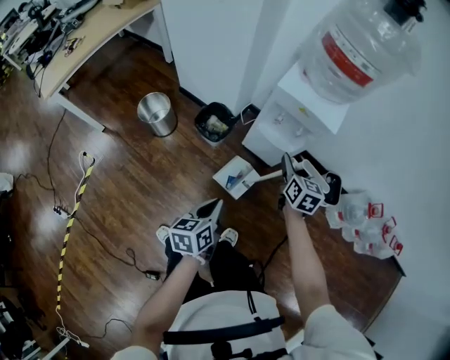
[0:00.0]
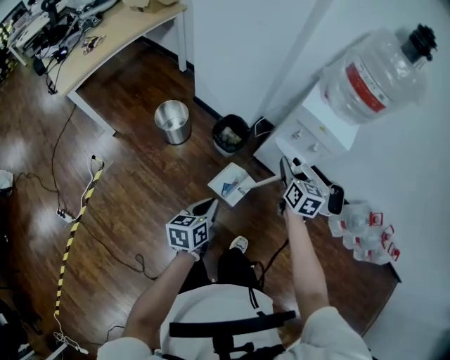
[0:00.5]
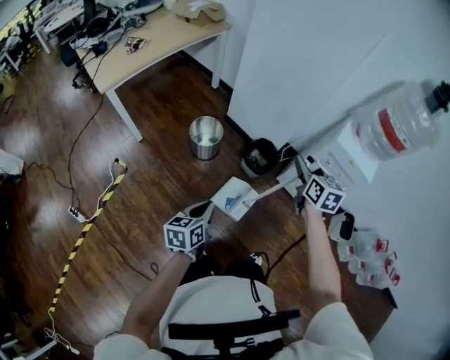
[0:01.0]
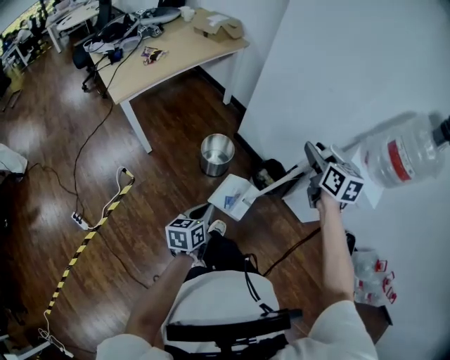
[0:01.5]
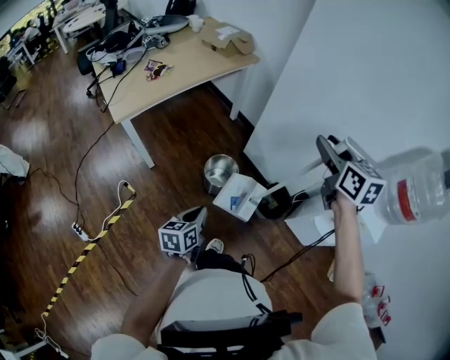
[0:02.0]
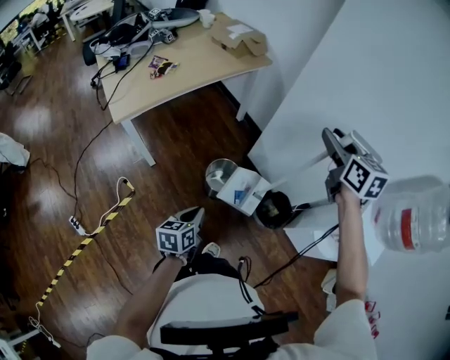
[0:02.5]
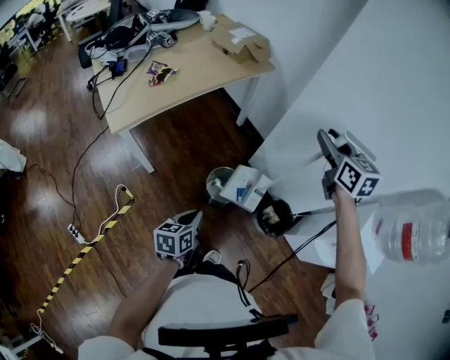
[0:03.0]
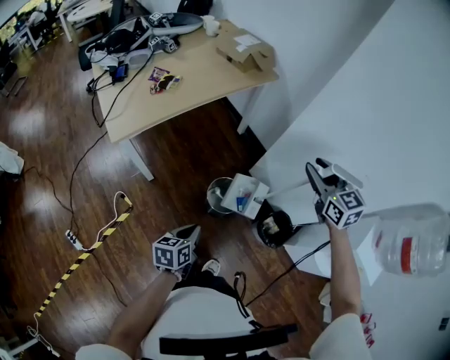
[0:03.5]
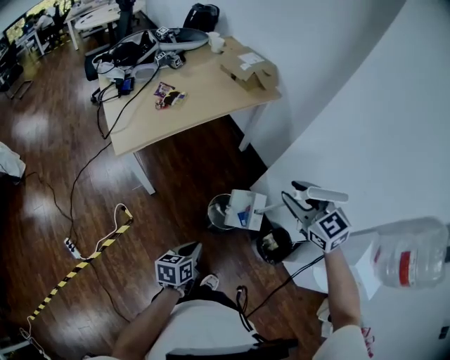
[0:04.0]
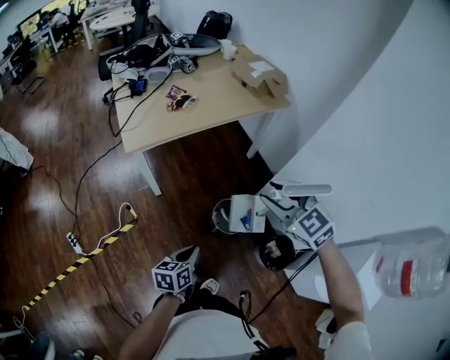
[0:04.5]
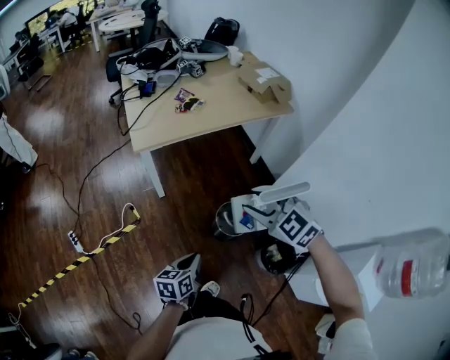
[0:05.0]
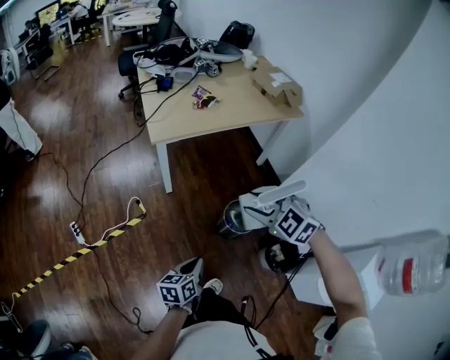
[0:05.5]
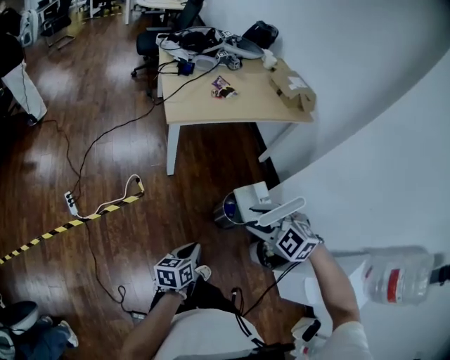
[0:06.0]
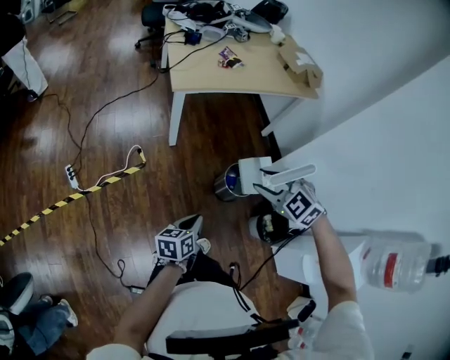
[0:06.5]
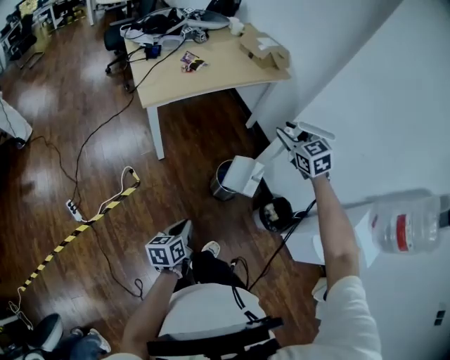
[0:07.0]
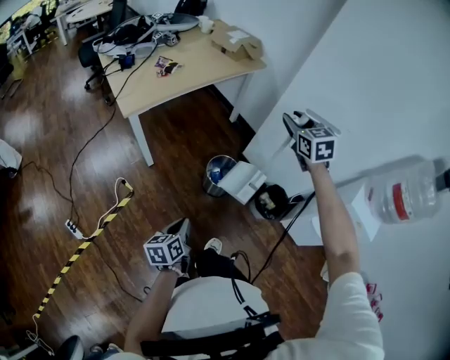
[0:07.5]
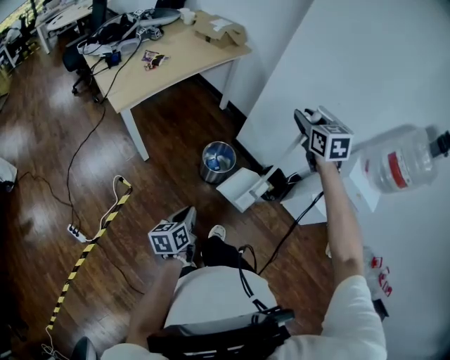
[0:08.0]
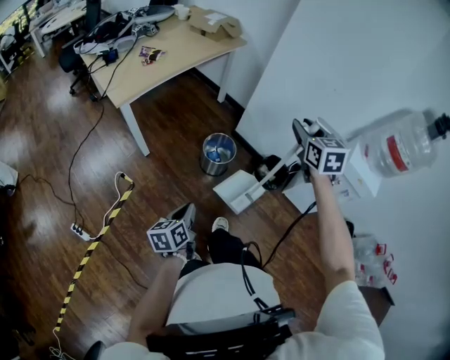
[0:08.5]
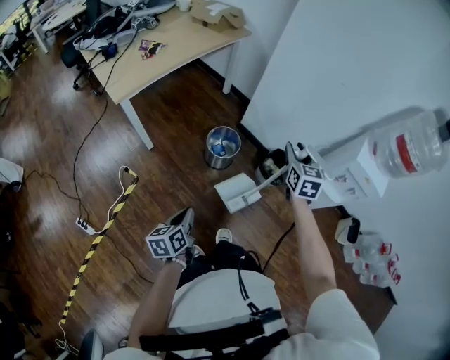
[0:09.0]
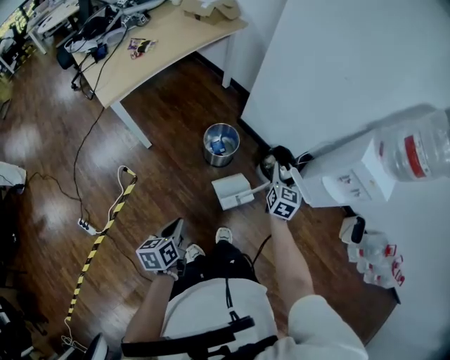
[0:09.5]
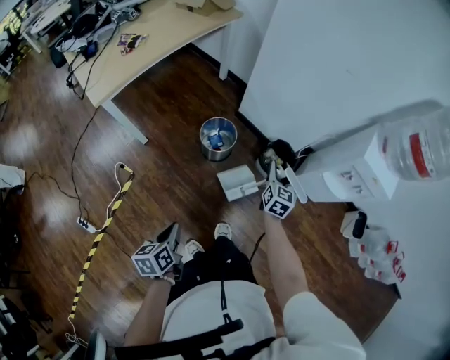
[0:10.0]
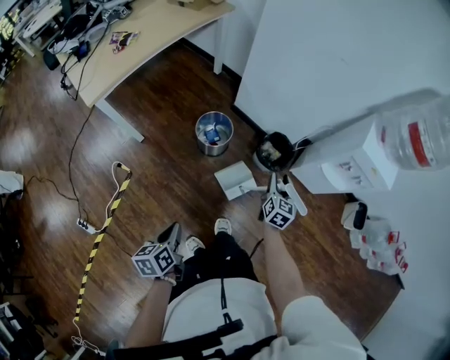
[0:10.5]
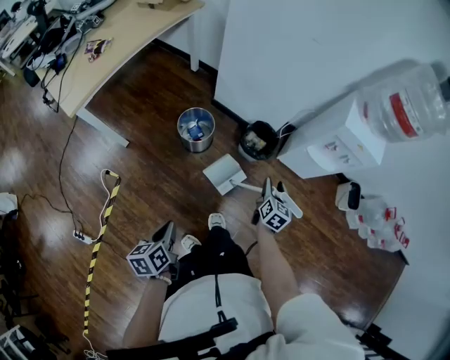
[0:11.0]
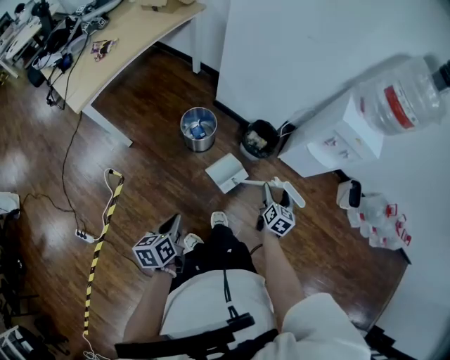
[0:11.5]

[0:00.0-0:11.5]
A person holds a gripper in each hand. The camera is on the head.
0:00.0 to 0:02.0: The two grippers travel together, to the left, some 50 cm. The right gripper moves upward, some 30 cm, and changes its angle by some 30 degrees.
0:02.0 to 0:04.0: The left gripper is displaced forward and to the left by some 10 cm. The right gripper moves to the left, forward and downward, roughly 20 cm, and swivels some 40 degrees.
0:04.0 to 0:06.0: The right gripper is displaced to the left and backward by roughly 30 cm, and rotates approximately 50 degrees. The left gripper heads backward and to the left, covering approximately 15 cm, and rotates some 20 degrees.
0:06.0 to 0:07.5: The right gripper ends up about 30 cm from where it was, and swivels about 70 degrees.
0:07.5 to 0:09.5: The left gripper is displaced backward by about 5 cm. Meanwhile the right gripper shifts about 35 cm downward, backward and to the right, and turns by some 40 degrees.
0:09.5 to 0:11.5: The left gripper moves to the right, roughly 5 cm, while the right gripper moves to the right, backward and downward, about 25 cm, changes its angle by approximately 30 degrees, and opens up.

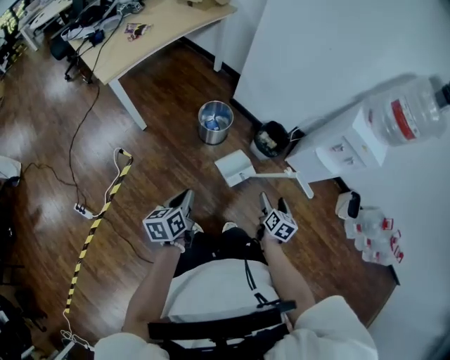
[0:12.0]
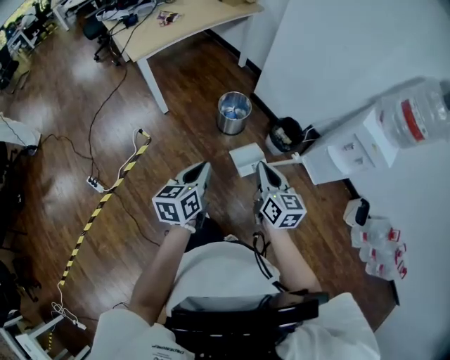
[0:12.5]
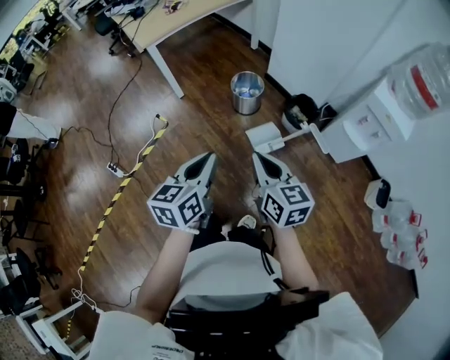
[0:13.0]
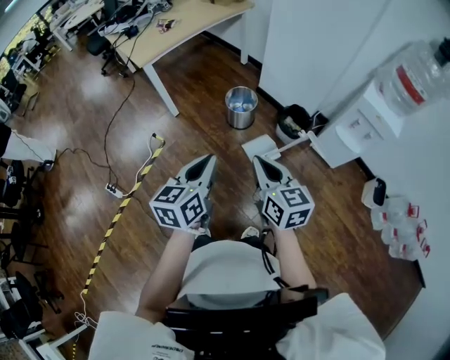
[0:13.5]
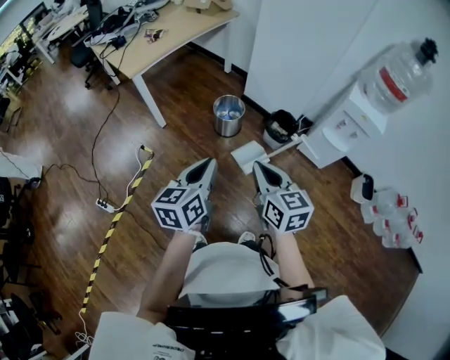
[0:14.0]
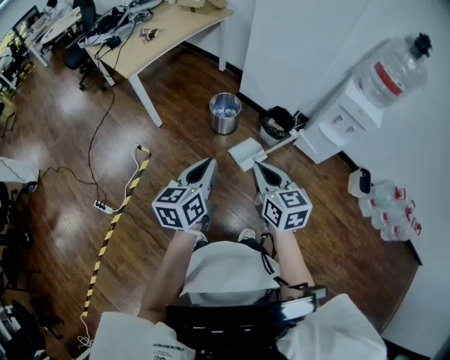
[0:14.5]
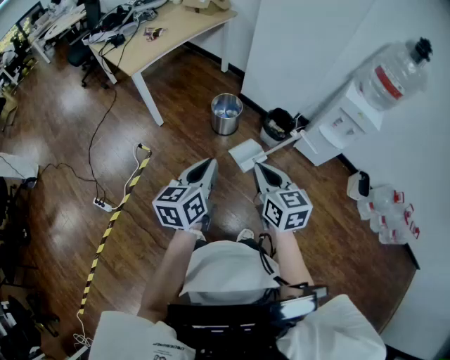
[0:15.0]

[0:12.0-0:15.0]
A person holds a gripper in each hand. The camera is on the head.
0:12.0 to 0:13.5: The left gripper is displaced upward and backward by approximately 20 cm, and swivels roughly 20 degrees. Meanwhile the right gripper shifts about 30 cm upward and to the left, changes its angle by approximately 40 degrees, and closes up.
0:13.5 to 0:15.0: There are only small adjustments of the grippers.

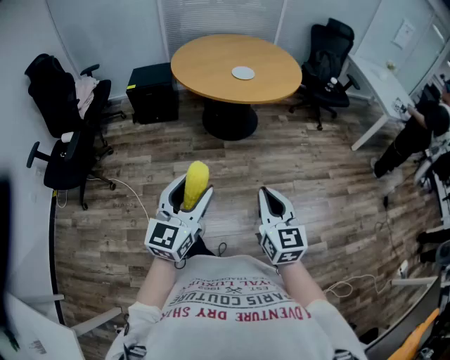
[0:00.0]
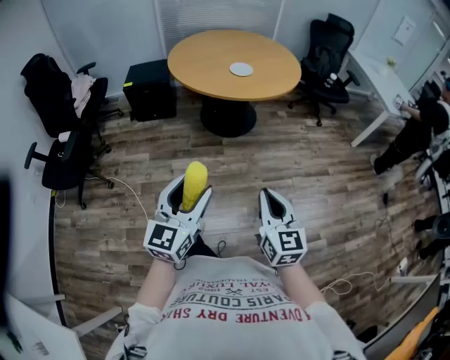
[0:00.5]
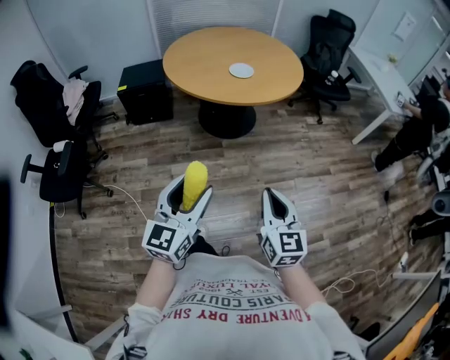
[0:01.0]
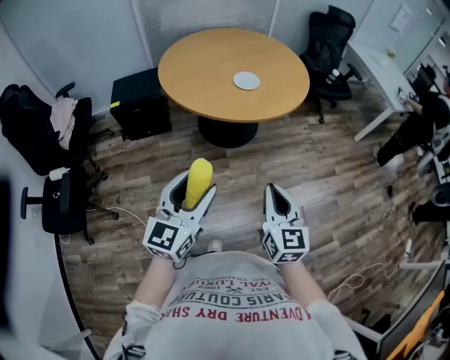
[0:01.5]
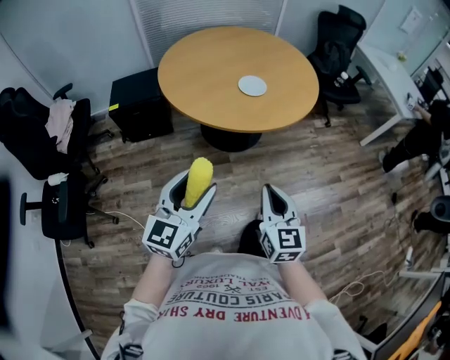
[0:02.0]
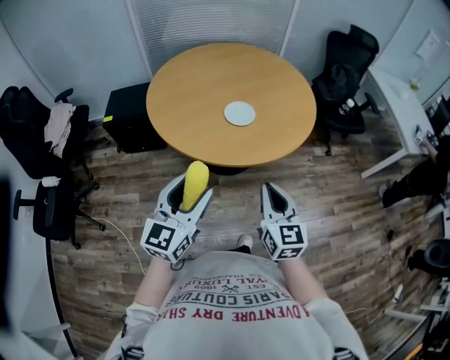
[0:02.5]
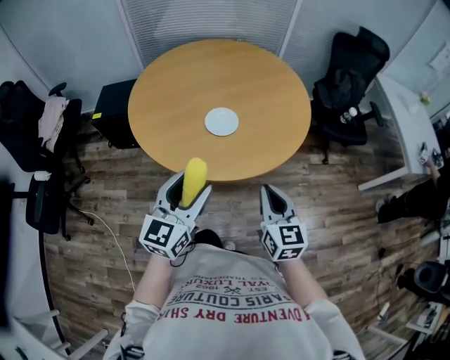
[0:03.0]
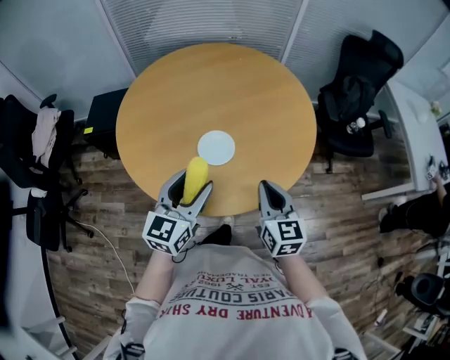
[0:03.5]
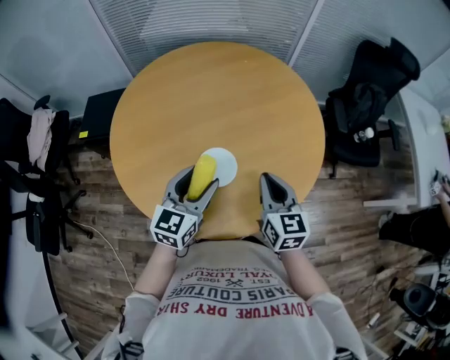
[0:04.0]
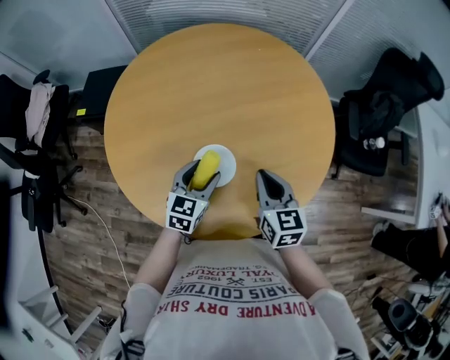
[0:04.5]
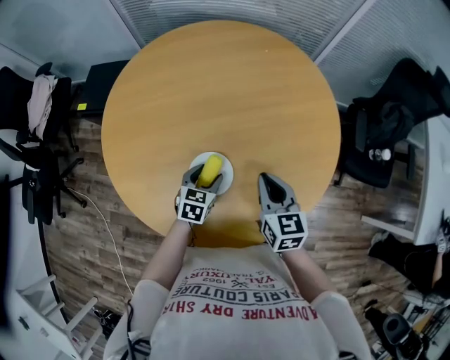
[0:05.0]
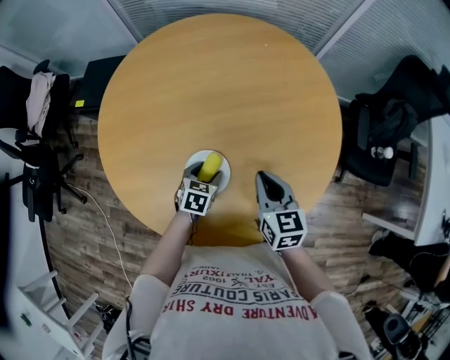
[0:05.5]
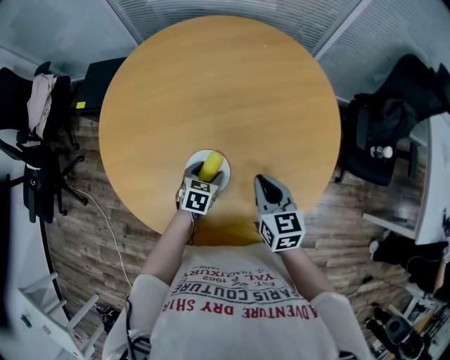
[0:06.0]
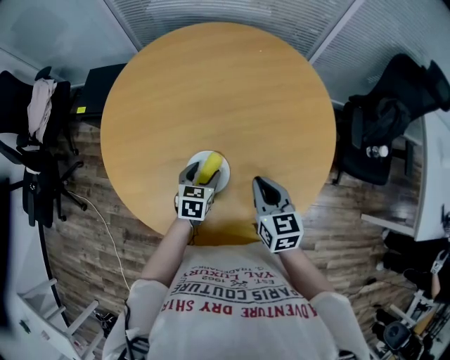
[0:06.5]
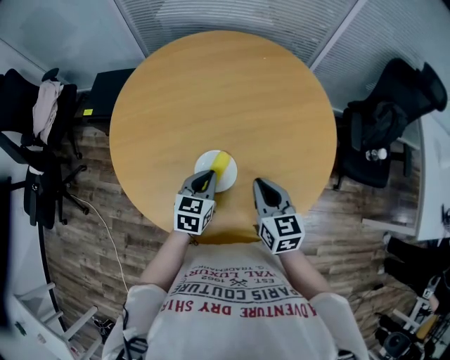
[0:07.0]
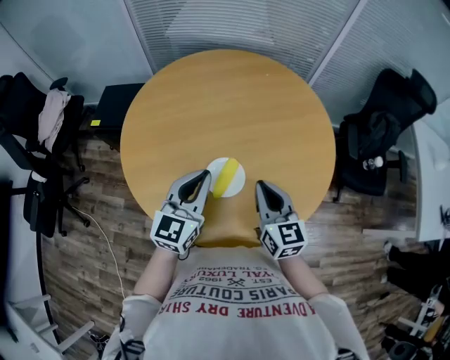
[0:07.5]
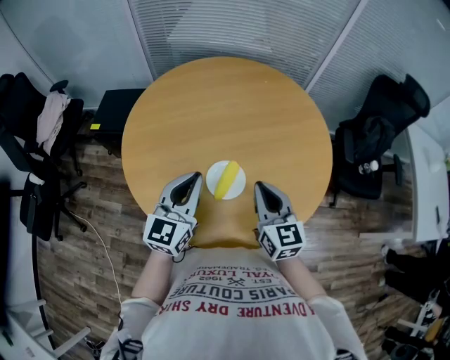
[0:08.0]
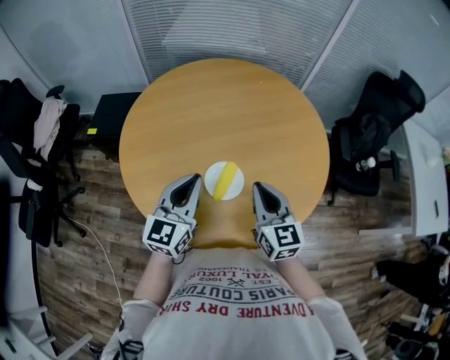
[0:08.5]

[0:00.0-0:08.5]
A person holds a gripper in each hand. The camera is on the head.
0:00.0 to 0:02.0: Both grippers move forward and to the left, roughly 30 cm.
0:02.0 to 0:04.0: Both grippers are carried forward, about 60 cm.
0:04.0 to 0:06.5: The left gripper moves downward, approximately 20 cm, and tilts its fingers about 30 degrees downward, while the right gripper moves downward and forward, about 10 cm.
0:06.5 to 0:08.5: The left gripper is displaced upward by about 25 cm, angles its fingers upward, by approximately 40 degrees, and closes. The right gripper moves upward and to the left, roughly 10 cm.

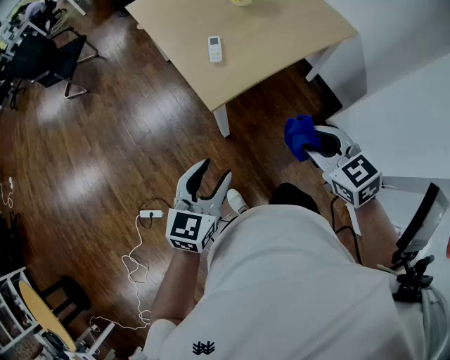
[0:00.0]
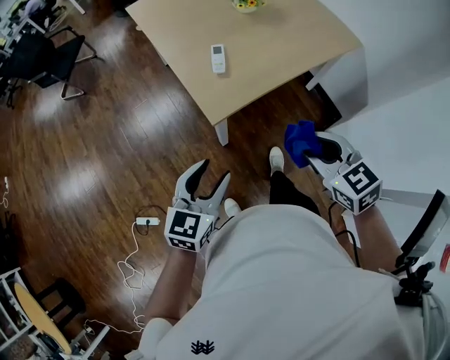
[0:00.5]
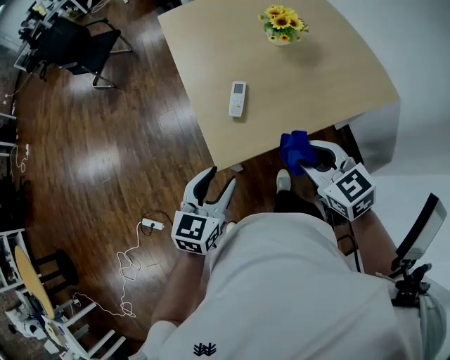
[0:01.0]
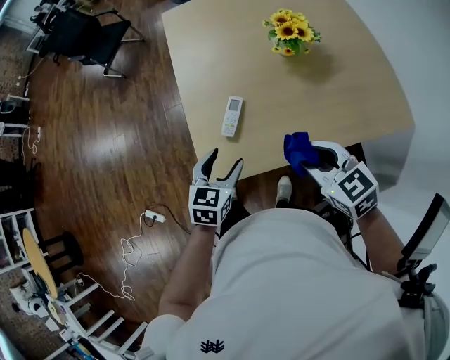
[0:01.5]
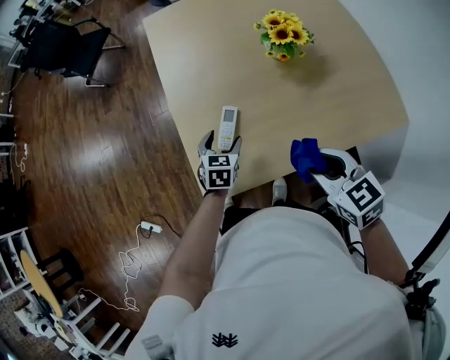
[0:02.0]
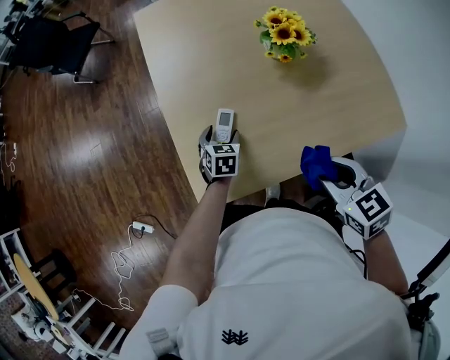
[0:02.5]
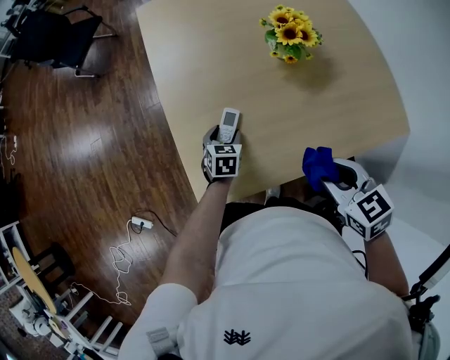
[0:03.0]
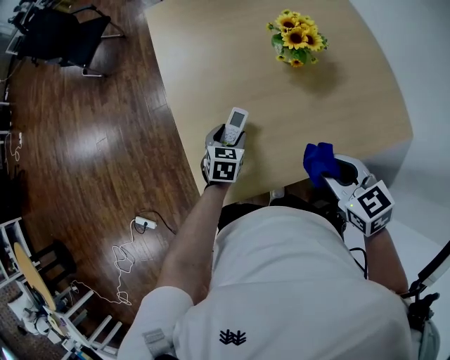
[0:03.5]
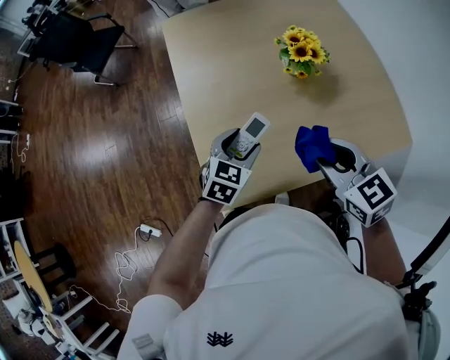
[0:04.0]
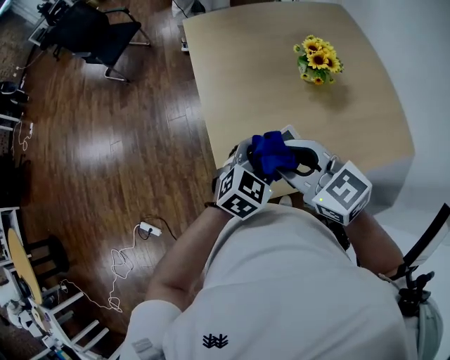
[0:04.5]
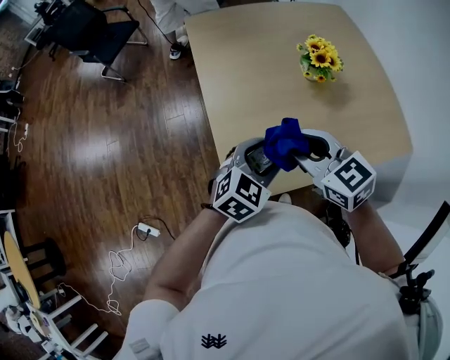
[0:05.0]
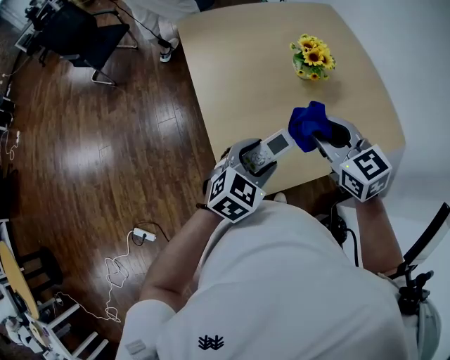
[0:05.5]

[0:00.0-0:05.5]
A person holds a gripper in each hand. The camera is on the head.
0:00.0 to 0:02.0: The right gripper moves some 35 cm. The left gripper changes place by some 50 cm, and swivels some 40 degrees.
0:03.5 to 0:05.5: The right gripper is displaced to the left, upward and forward by approximately 15 cm. Meanwhile the left gripper travels upward and backward by about 20 cm, and rotates about 30 degrees.
